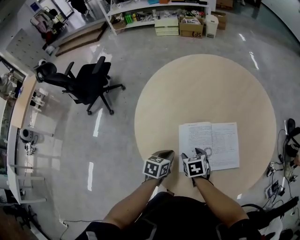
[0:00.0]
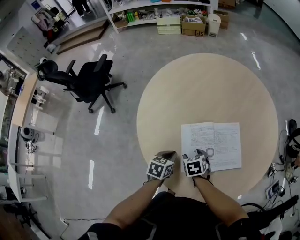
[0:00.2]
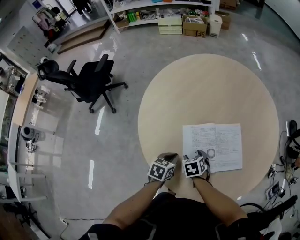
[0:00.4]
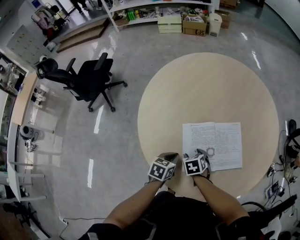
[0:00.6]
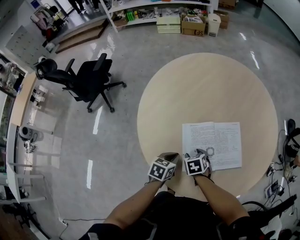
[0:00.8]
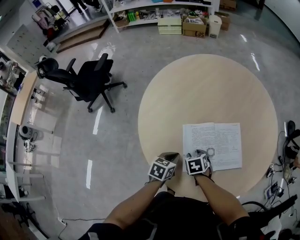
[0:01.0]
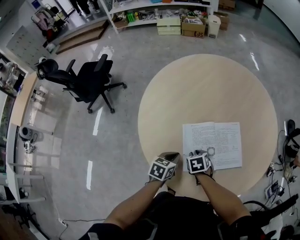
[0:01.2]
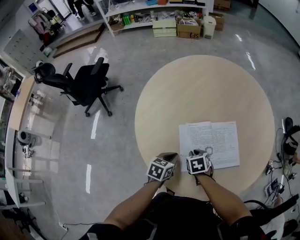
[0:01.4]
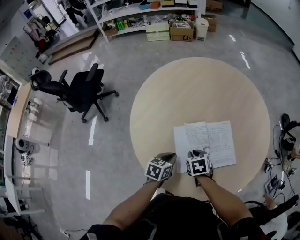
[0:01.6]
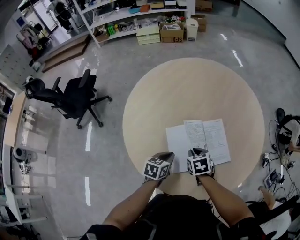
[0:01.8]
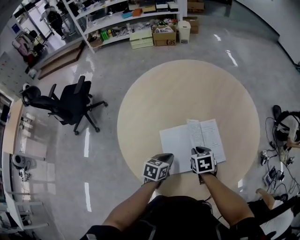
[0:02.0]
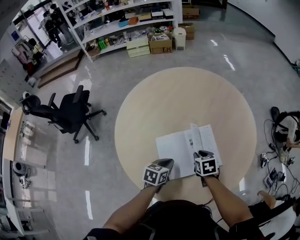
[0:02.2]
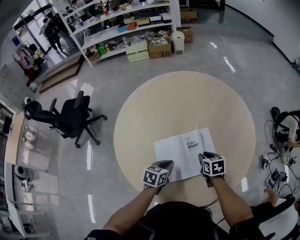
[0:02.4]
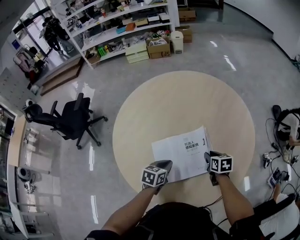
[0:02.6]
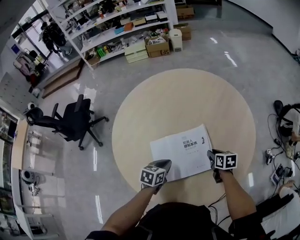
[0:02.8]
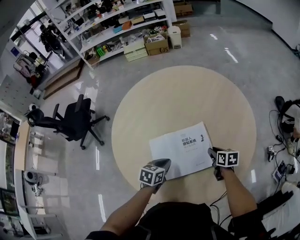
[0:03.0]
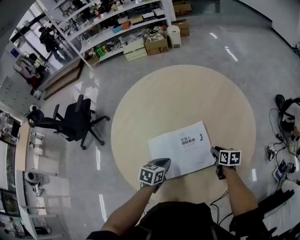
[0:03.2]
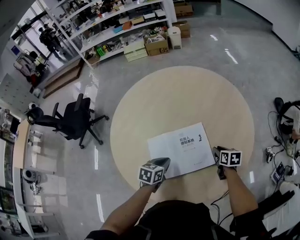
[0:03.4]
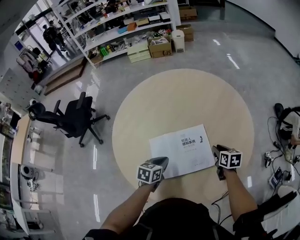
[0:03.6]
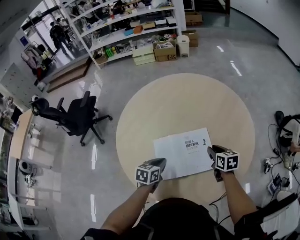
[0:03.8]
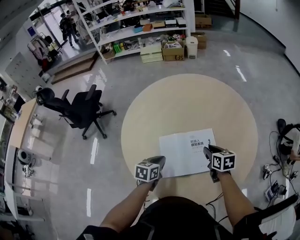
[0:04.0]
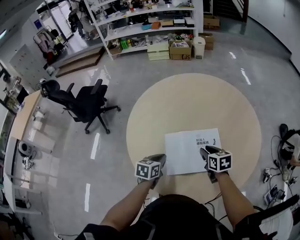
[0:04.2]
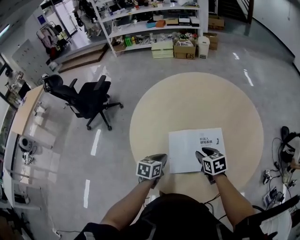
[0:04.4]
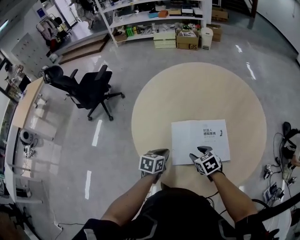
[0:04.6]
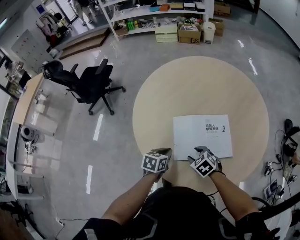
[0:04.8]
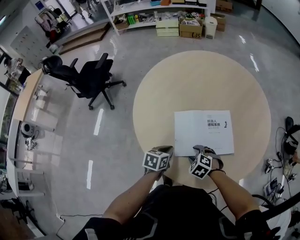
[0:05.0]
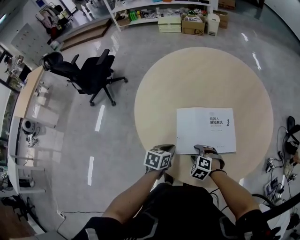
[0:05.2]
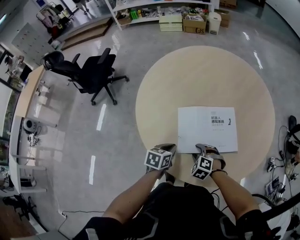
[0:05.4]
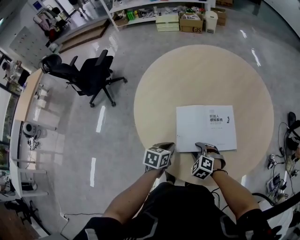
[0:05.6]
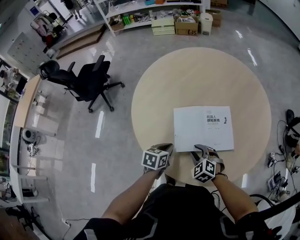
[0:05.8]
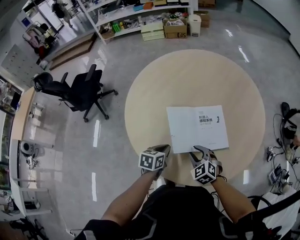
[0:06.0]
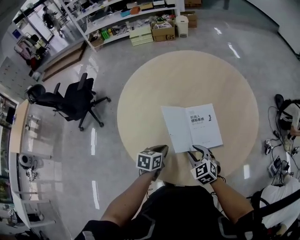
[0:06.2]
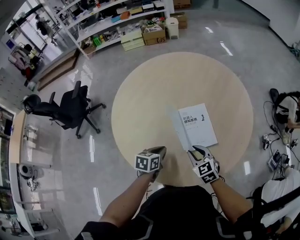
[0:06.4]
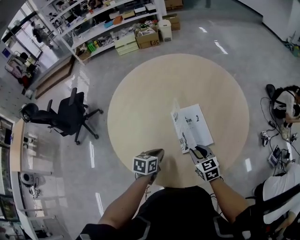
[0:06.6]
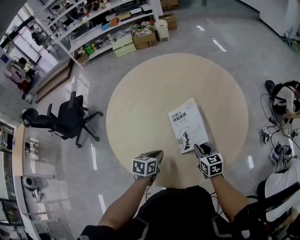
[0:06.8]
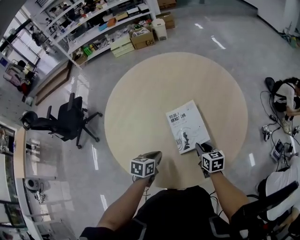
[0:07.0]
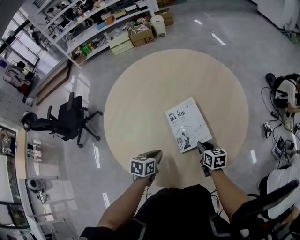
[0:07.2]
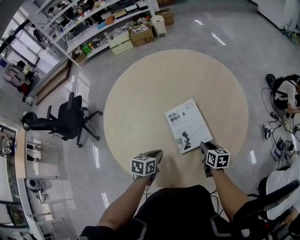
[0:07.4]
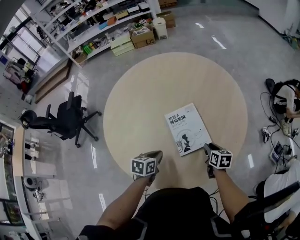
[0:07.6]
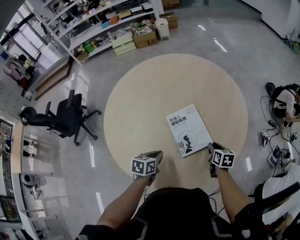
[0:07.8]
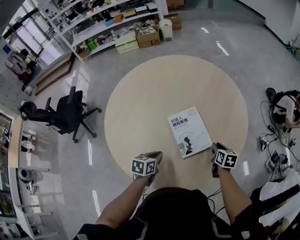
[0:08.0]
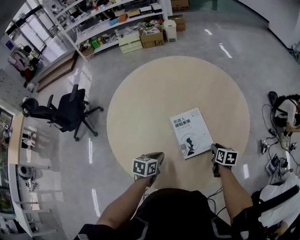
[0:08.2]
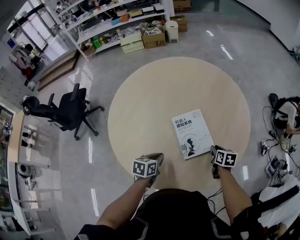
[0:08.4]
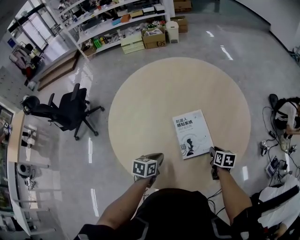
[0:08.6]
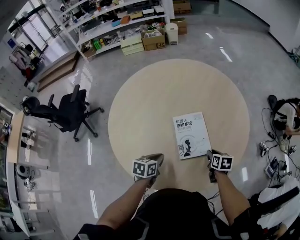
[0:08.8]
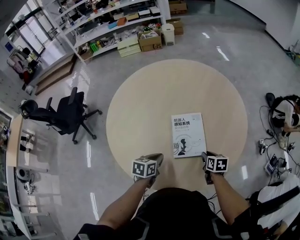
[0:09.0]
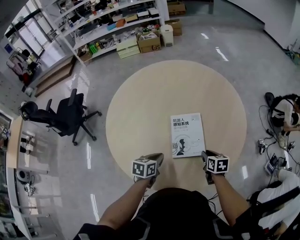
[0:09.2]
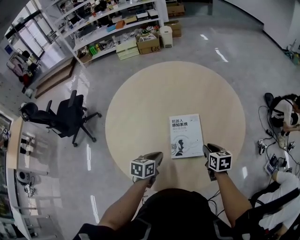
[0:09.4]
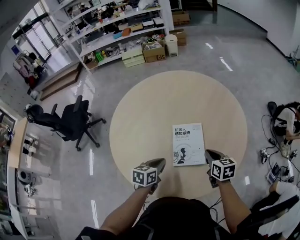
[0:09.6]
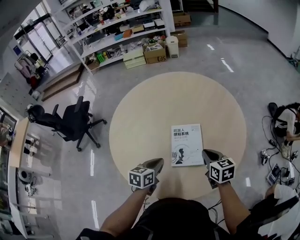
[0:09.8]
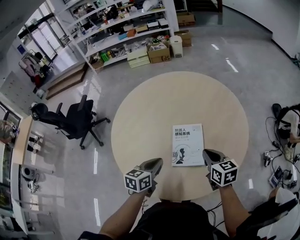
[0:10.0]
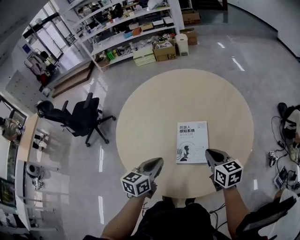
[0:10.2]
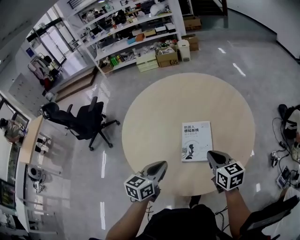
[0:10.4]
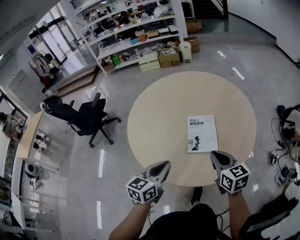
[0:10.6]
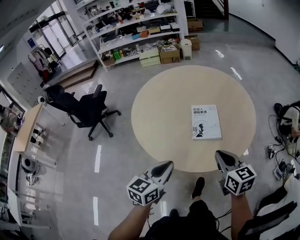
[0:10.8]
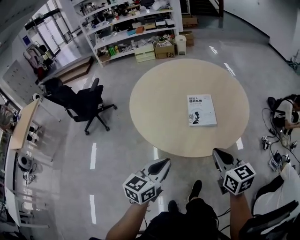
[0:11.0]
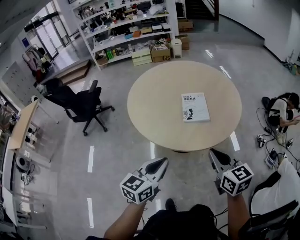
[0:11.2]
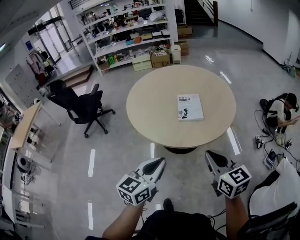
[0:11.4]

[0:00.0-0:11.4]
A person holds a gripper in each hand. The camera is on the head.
0:00.0 to 0:01.4: The right gripper closes its fingers.
0:01.4 to 0:02.8: The left gripper moves to the right and forward, approximately 10 cm, while the right gripper goes approximately 25 cm to the right, and changes its angle by approximately 30 degrees.
0:02.8 to 0:04.2: The right gripper is displaced to the left and upward by approximately 15 cm, and turns by about 20 degrees. Meanwhile the left gripper is displaced to the left by about 10 cm.
0:04.2 to 0:05.6: The right gripper goes some 20 cm backward, to the left and downward, and rotates around the line of its fingers by some 60 degrees, counterclockwise from behind; the left gripper moves backward, some 5 cm.
0:05.6 to 0:07.2: The left gripper shifts some 10 cm to the right; the right gripper is displaced to the right by some 20 cm, rotates around the line of its fingers by approximately 80 degrees, clockwise from behind, and closes up.
0:07.2 to 0:08.6: The right gripper moves to the right, approximately 5 cm.
0:08.6 to 0:10.0: The left gripper shifts approximately 10 cm upward, while the right gripper heads upward, covering approximately 20 cm, changes its angle by some 30 degrees, and closes.
0:10.0 to 0:11.4: The grippers both shift backward by some 40 cm. The left gripper rotates approximately 20 degrees.

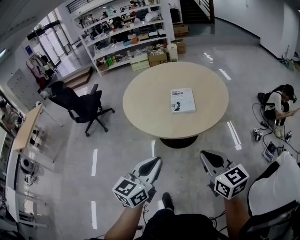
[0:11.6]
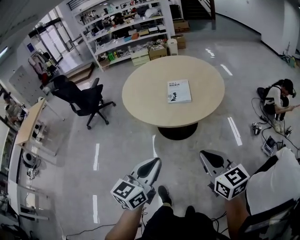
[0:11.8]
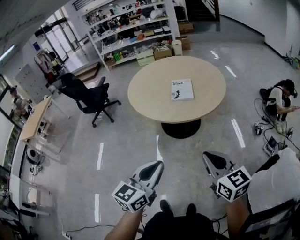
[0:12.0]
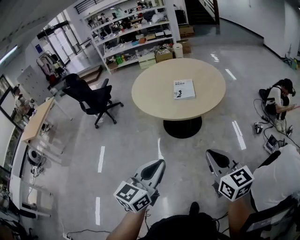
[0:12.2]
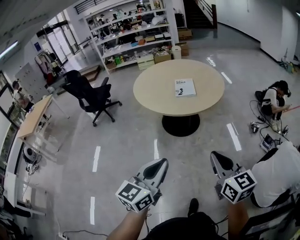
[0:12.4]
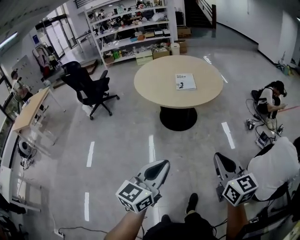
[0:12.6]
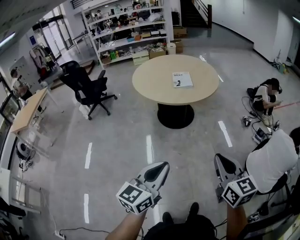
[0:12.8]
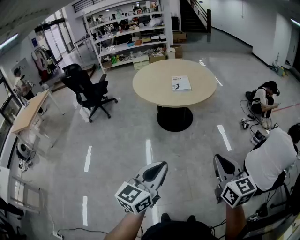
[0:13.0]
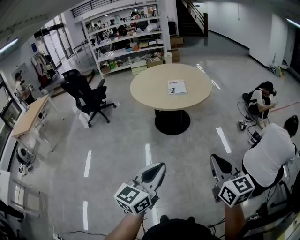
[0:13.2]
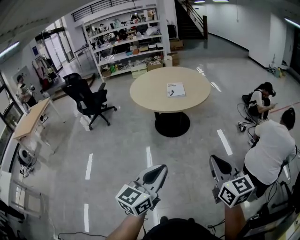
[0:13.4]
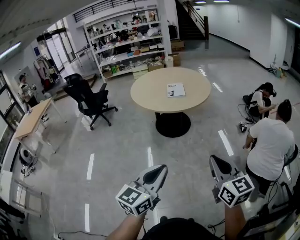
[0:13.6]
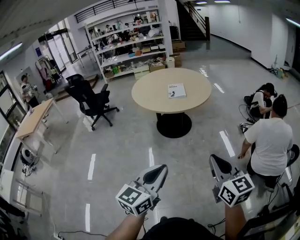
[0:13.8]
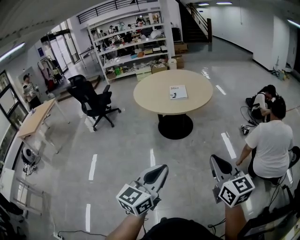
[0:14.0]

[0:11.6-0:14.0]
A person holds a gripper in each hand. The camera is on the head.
0:11.6 to 0:12.8: Both grippers travel together backward, some 35 cm.
0:12.8 to 0:14.0: Both grippers travel together to the right and backward, approximately 10 cm.

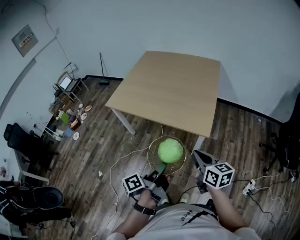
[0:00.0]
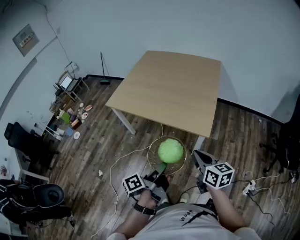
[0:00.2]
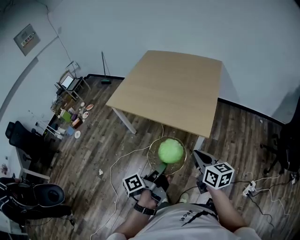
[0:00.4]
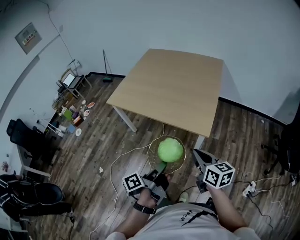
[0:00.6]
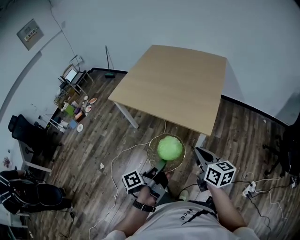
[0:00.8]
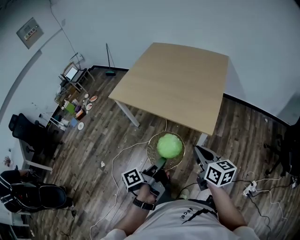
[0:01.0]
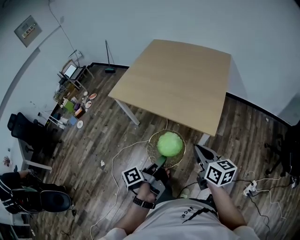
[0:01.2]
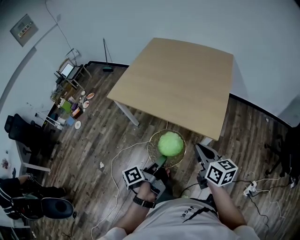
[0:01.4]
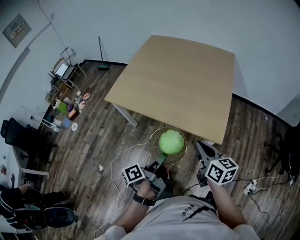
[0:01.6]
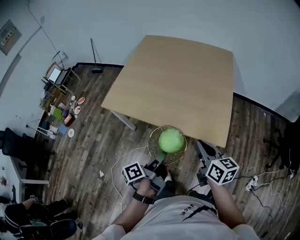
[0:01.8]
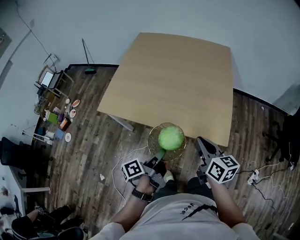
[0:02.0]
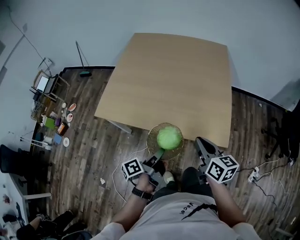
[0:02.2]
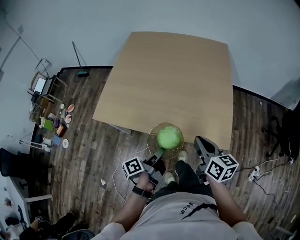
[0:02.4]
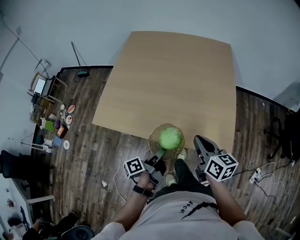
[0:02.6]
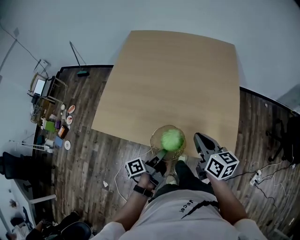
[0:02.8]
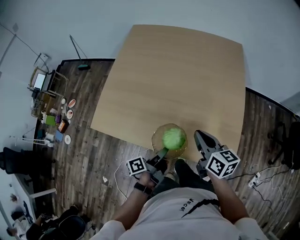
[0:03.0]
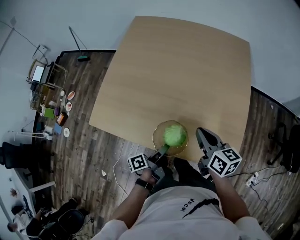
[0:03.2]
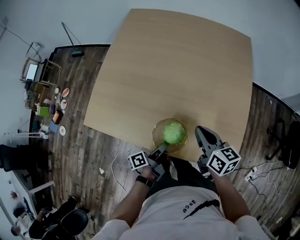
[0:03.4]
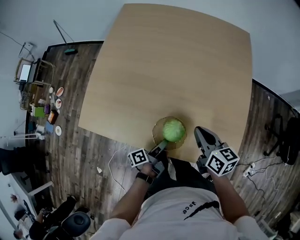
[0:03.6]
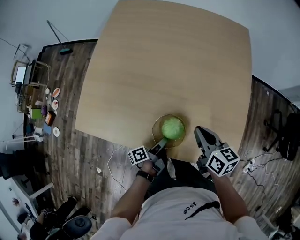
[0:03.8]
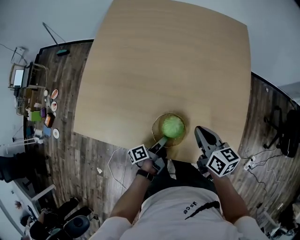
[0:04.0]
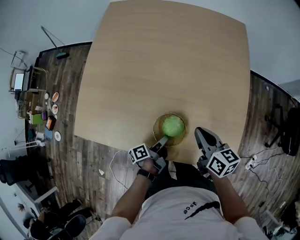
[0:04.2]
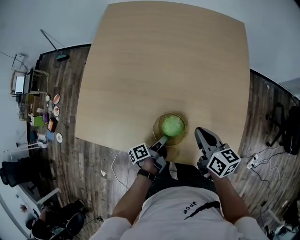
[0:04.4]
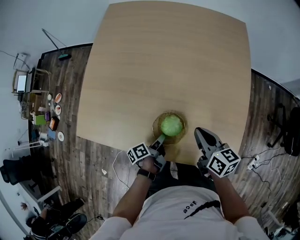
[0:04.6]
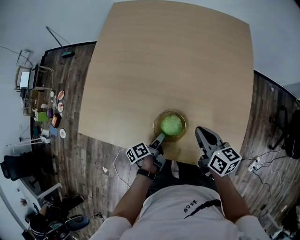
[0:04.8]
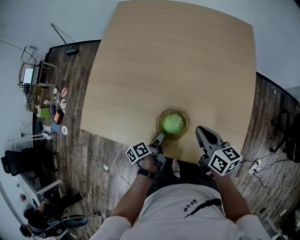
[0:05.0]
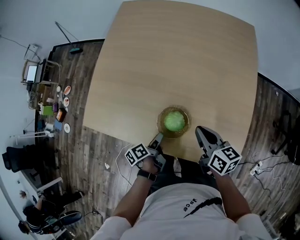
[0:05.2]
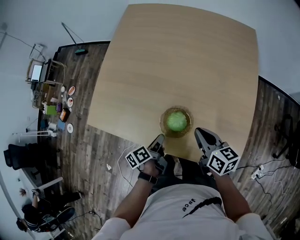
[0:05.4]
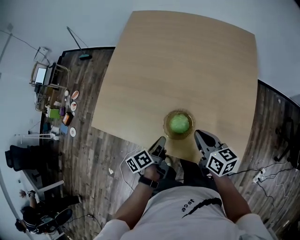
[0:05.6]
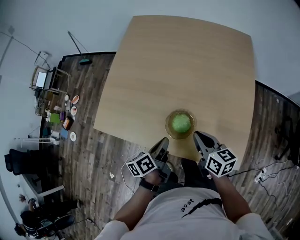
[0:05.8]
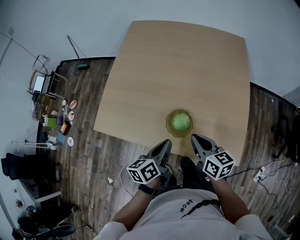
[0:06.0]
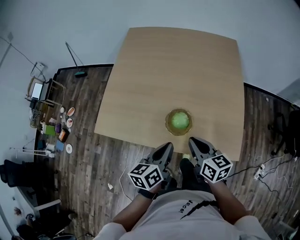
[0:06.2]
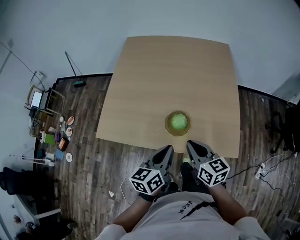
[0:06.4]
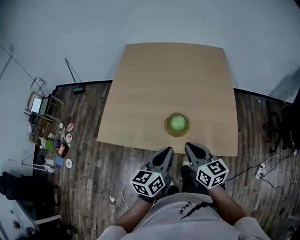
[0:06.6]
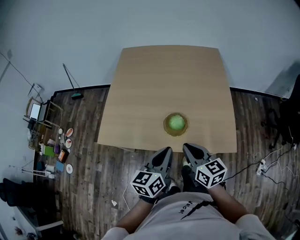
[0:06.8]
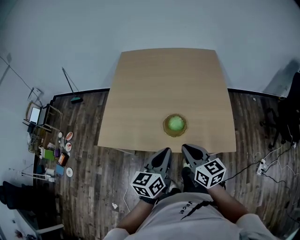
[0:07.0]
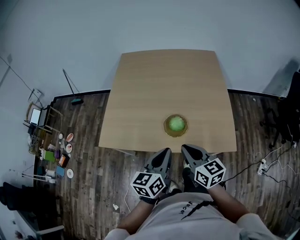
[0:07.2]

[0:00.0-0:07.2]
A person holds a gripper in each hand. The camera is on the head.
0:00.0 to 0:01.4: The right gripper changes place by roughly 10 cm.
0:01.4 to 0:02.8: The right gripper changes place by approximately 30 cm.
0:02.8 to 0:04.4: The right gripper shifts by about 15 cm.
0:04.4 to 0:05.8: The right gripper shifts by approximately 10 cm.
0:05.8 to 0:07.2: The right gripper ends up approximately 20 cm from where it was.

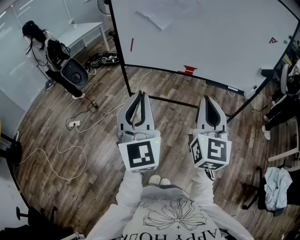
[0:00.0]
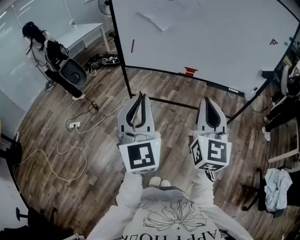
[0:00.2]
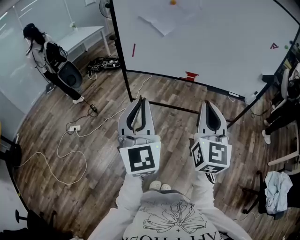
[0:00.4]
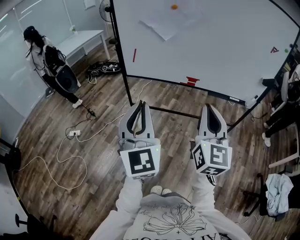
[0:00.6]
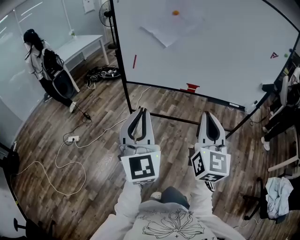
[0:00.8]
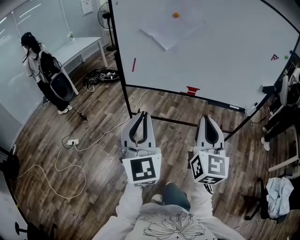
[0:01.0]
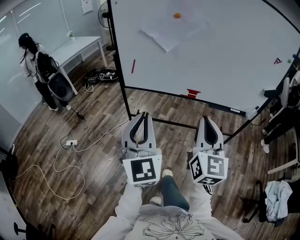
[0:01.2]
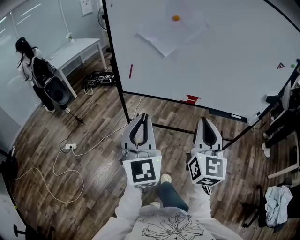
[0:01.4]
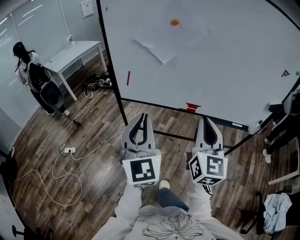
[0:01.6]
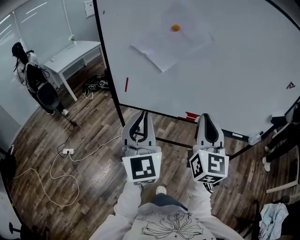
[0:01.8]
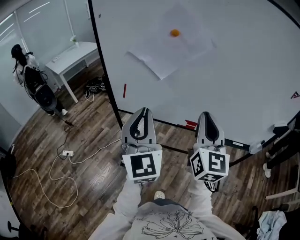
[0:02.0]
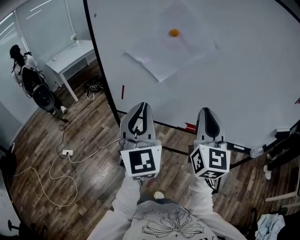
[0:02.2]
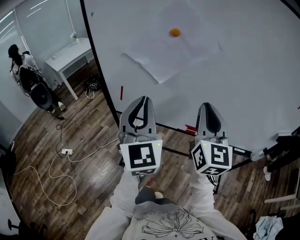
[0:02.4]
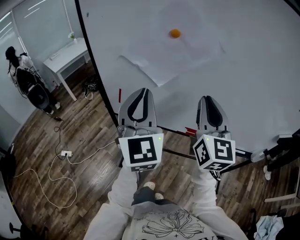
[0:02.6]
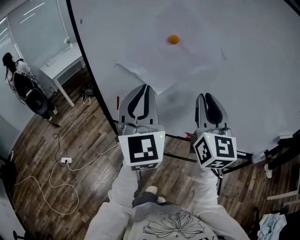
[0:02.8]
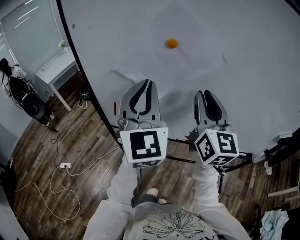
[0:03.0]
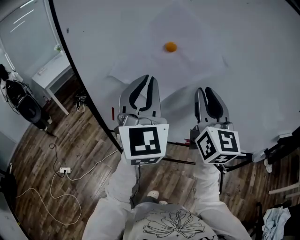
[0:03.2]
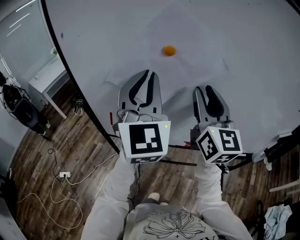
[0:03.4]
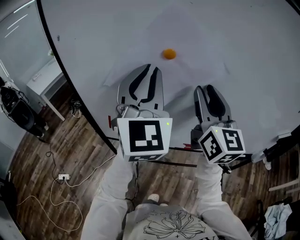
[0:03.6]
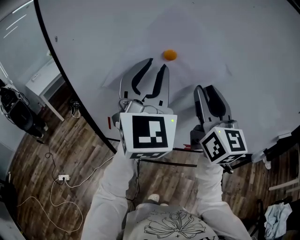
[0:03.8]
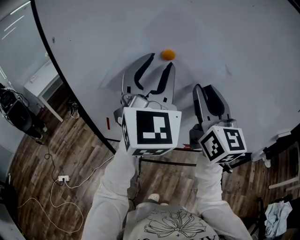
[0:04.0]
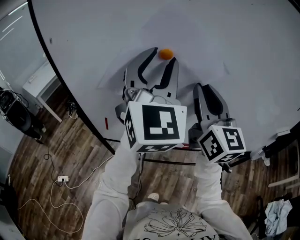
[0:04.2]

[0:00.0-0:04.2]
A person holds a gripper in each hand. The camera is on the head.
0:00.0 to 0:01.4: The grippers both shift forward by approximately 15 cm.
0:01.4 to 0:02.8: The two grippers go about 30 cm forward.
0:02.8 to 0:04.2: The right gripper heads forward, covering approximately 10 cm, while the left gripper is displaced forward, upward and to the right by some 15 cm, and opens up.
